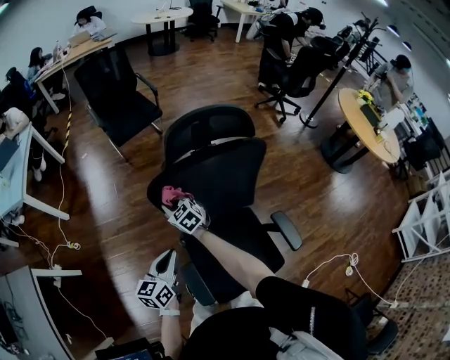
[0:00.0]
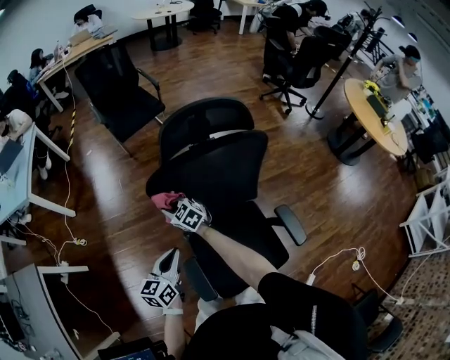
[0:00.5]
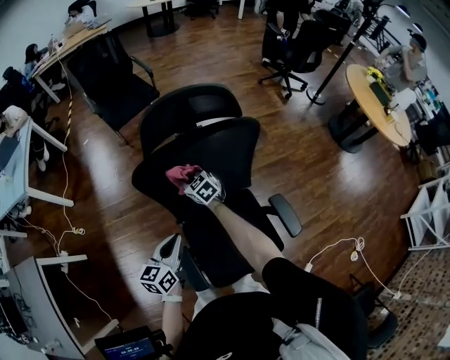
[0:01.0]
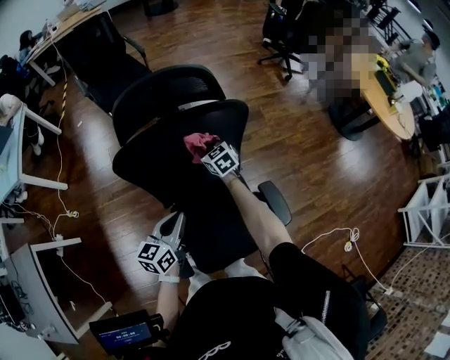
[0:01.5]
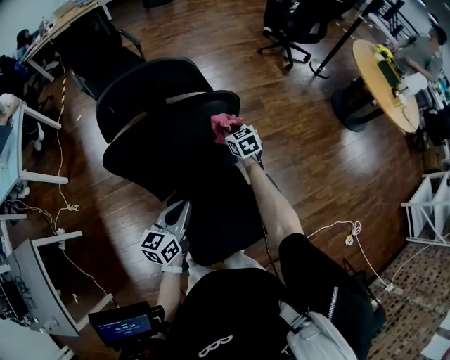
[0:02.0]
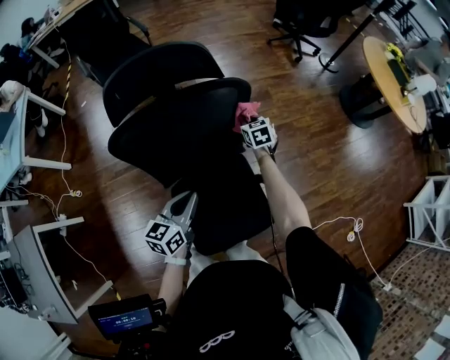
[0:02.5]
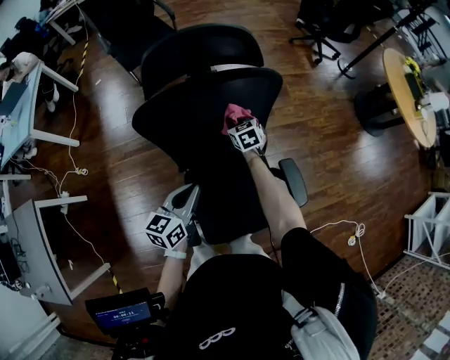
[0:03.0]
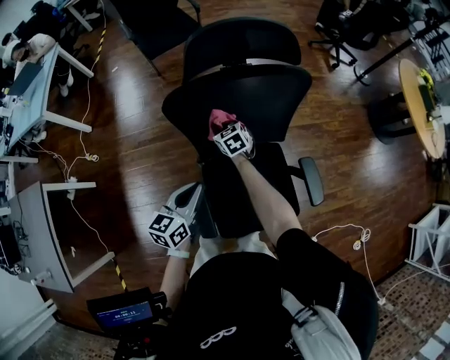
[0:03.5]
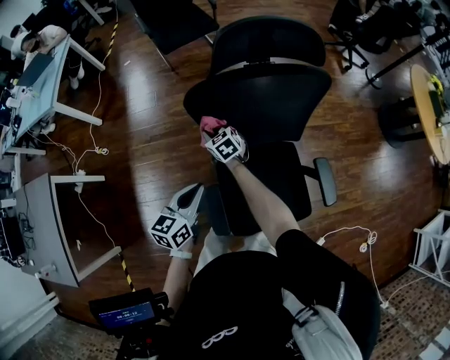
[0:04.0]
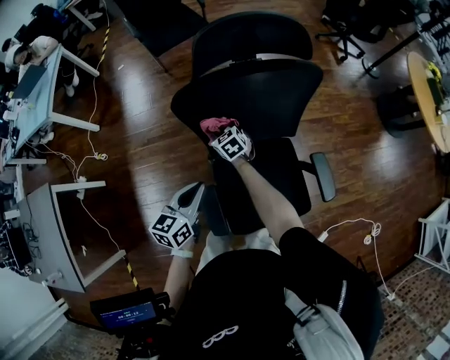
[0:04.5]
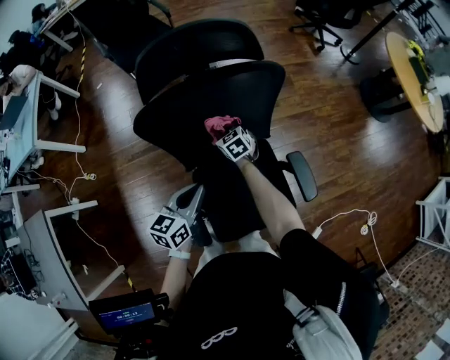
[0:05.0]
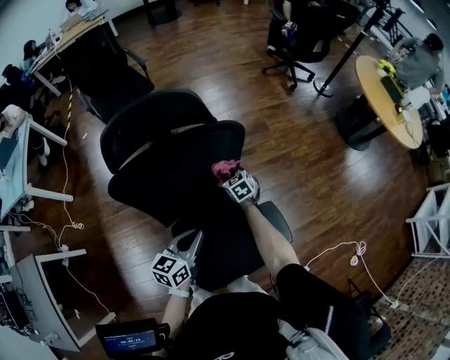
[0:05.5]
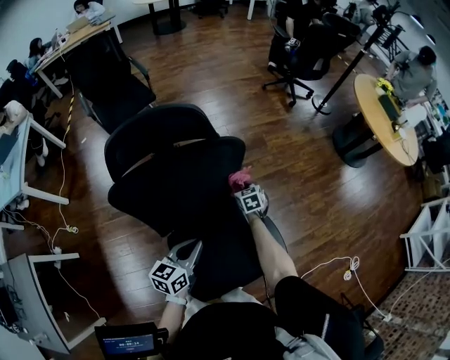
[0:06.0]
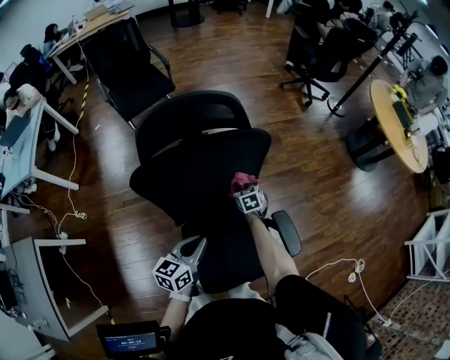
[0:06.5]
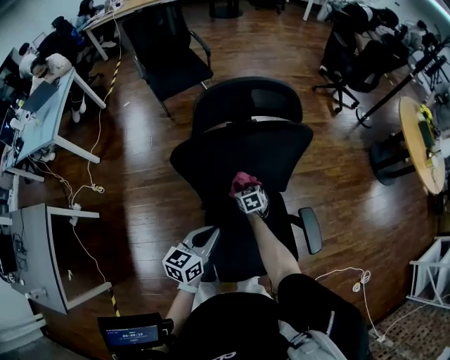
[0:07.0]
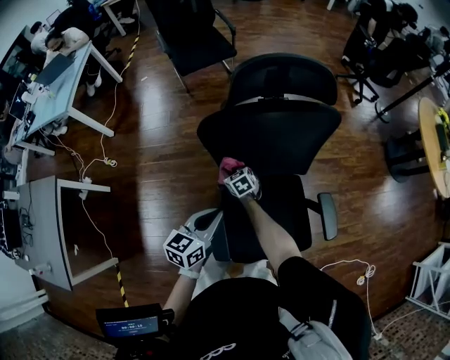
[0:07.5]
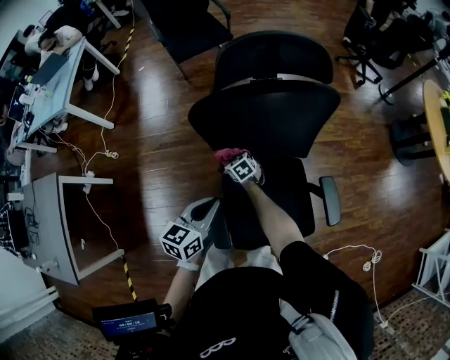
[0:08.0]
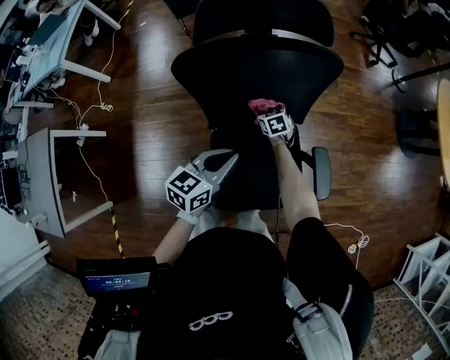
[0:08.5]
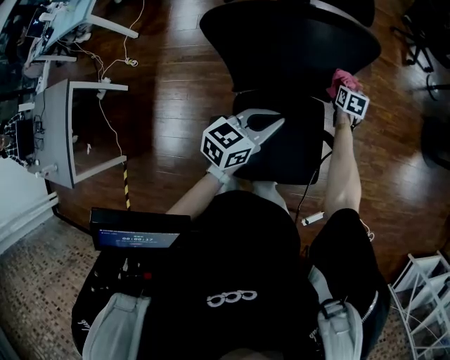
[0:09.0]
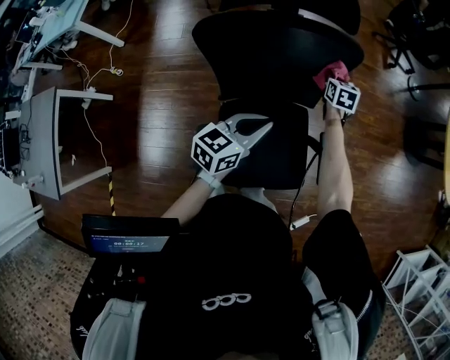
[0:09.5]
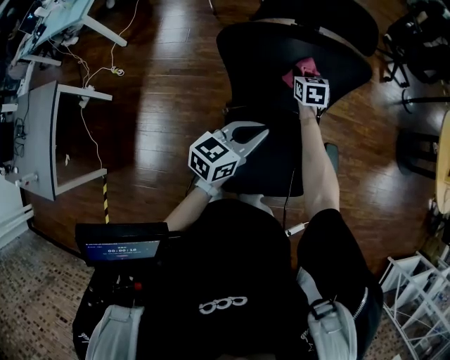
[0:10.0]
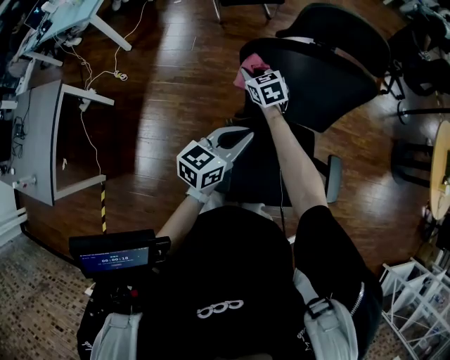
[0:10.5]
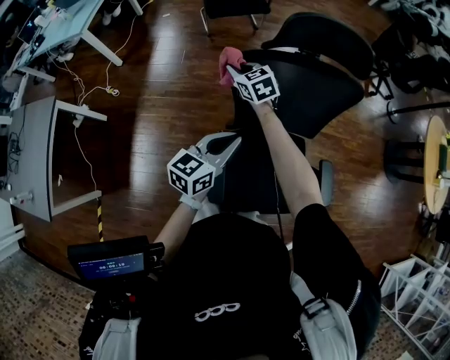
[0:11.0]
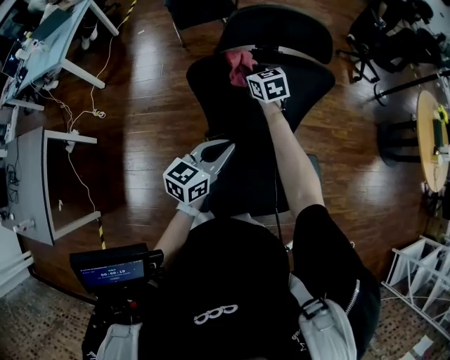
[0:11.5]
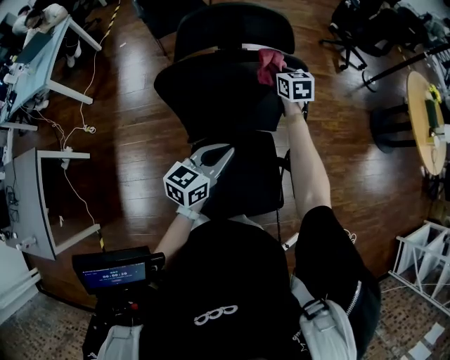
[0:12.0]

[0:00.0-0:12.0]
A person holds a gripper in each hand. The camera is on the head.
0:00.0 to 0:02.0: The left gripper shifts roughly 20 cm to the right, while the right gripper is displaced to the right by roughly 40 cm, and changes its angle by about 20 degrees.
0:02.0 to 0:04.0: The right gripper moves to the left, approximately 40 cm, and turns by about 20 degrees; the left gripper shifts roughly 20 cm to the left and backward.
0:04.0 to 0:06.0: The right gripper shifts by some 40 cm, and turns by approximately 30 degrees. The left gripper changes place by approximately 25 cm.
0:06.0 to 0:08.0: The left gripper ends up about 20 cm from where it was. The right gripper changes place by about 40 cm, and swivels roughly 30 degrees.
0:08.0 to 0:10.0: The right gripper turns by about 20 degrees.
0:10.0 to 0:12.0: The left gripper goes to the left and returns, approximately 10 cm each way; the right gripper shifts some 10 cm upward and forward, and moves roughly 25 cm to the left and comes back.

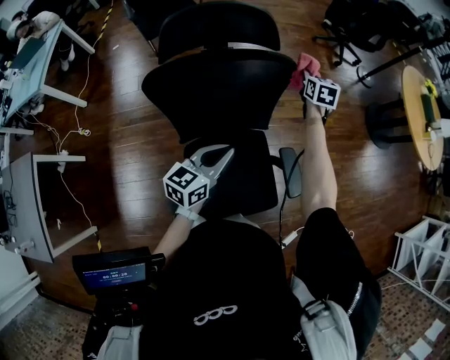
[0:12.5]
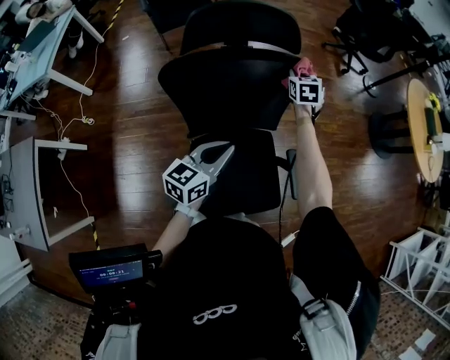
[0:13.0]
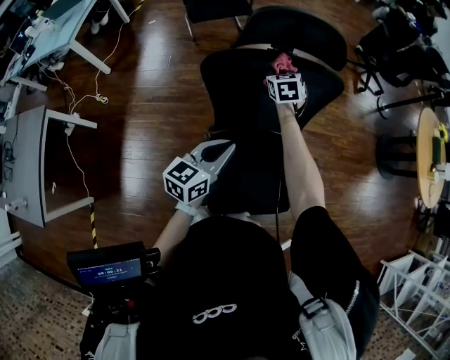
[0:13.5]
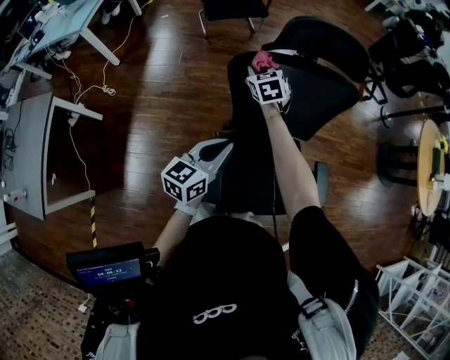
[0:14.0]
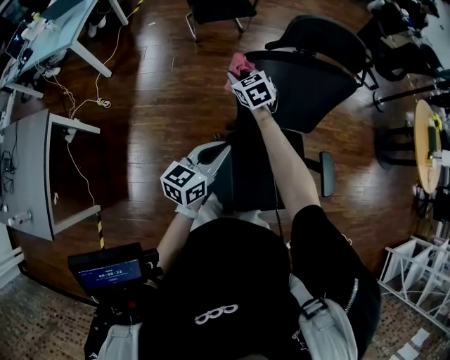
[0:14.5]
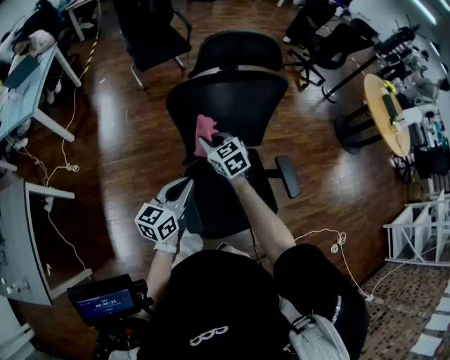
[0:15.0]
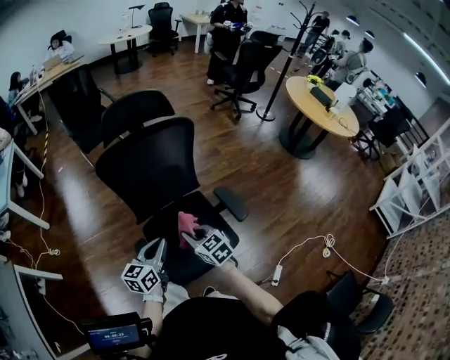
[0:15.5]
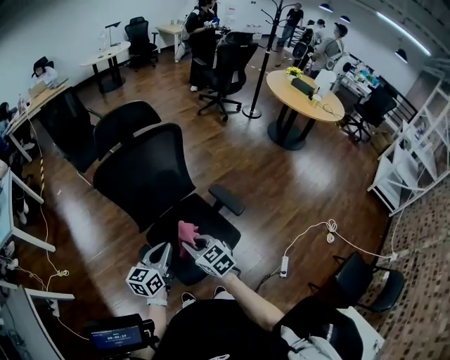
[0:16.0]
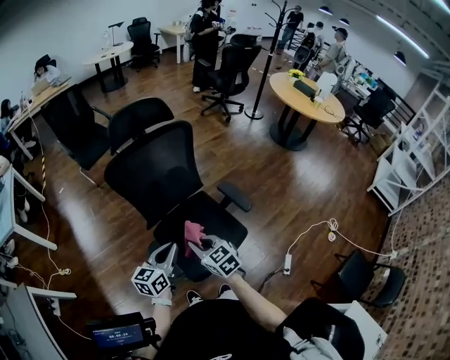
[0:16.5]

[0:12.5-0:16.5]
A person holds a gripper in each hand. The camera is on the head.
0:12.5 to 0:14.5: The right gripper moves approximately 60 cm, and turns by about 50 degrees. The left gripper shifts by some 25 cm.
0:14.5 to 0:16.5: The right gripper moves backward and to the right, roughly 40 cm, and swivels some 30 degrees. Meanwhile the left gripper goes approximately 20 cm to the right and backward.

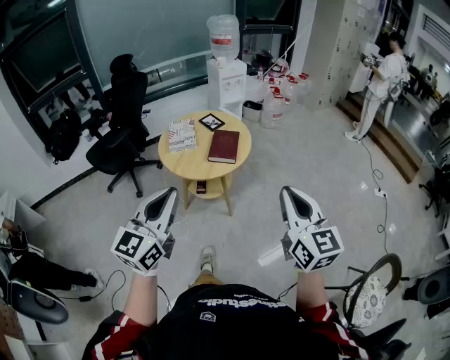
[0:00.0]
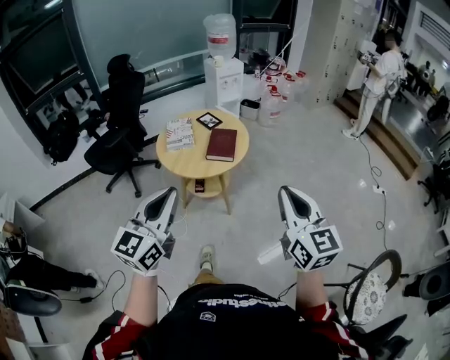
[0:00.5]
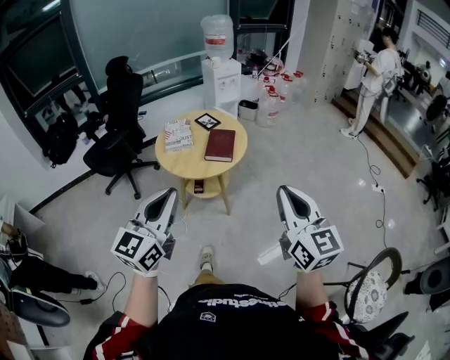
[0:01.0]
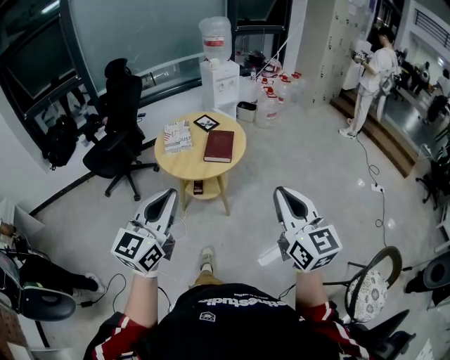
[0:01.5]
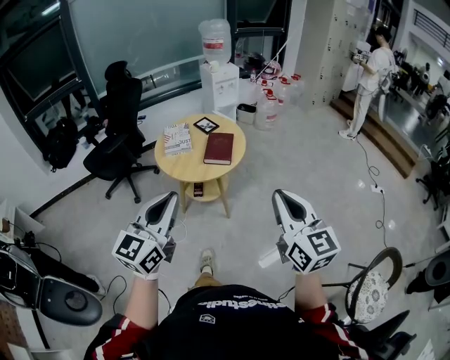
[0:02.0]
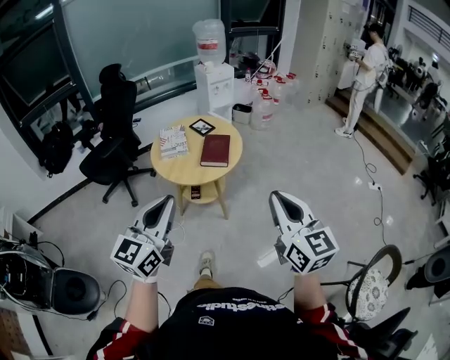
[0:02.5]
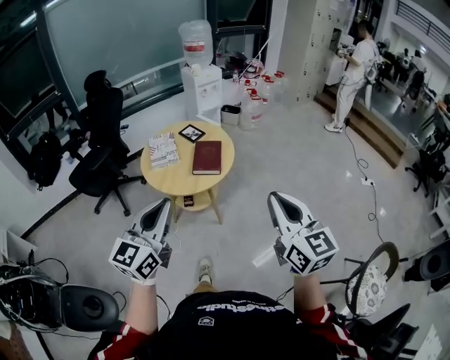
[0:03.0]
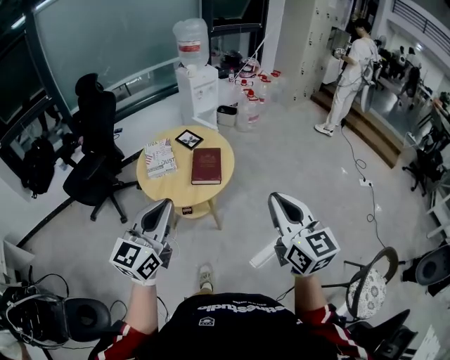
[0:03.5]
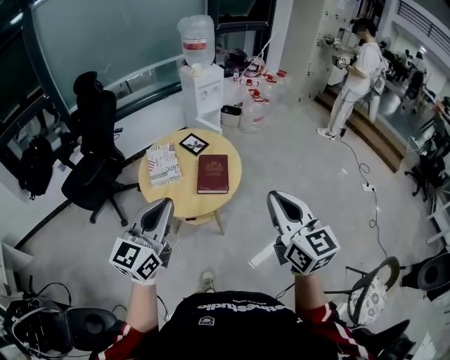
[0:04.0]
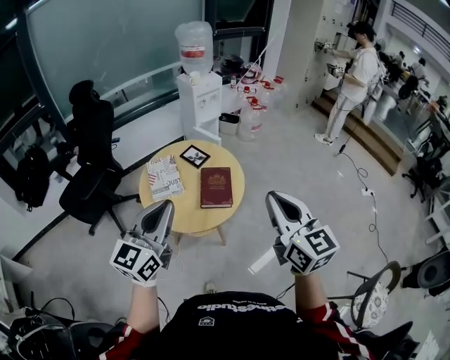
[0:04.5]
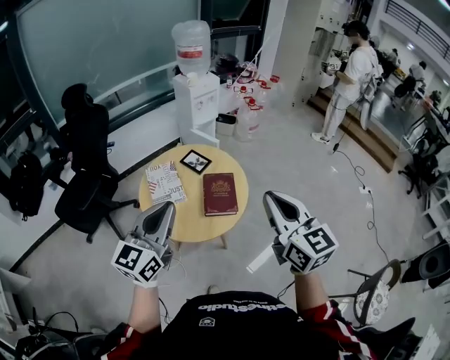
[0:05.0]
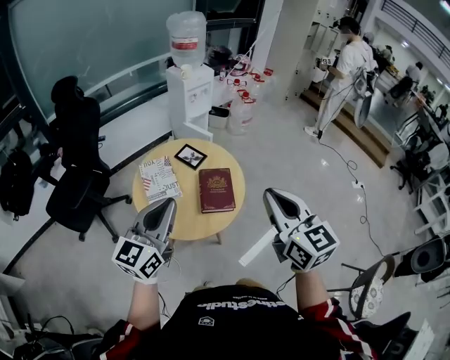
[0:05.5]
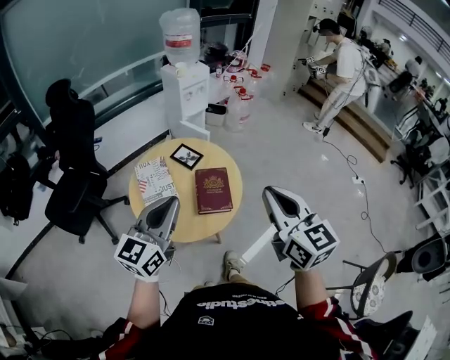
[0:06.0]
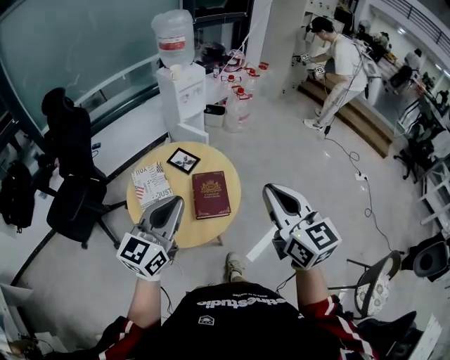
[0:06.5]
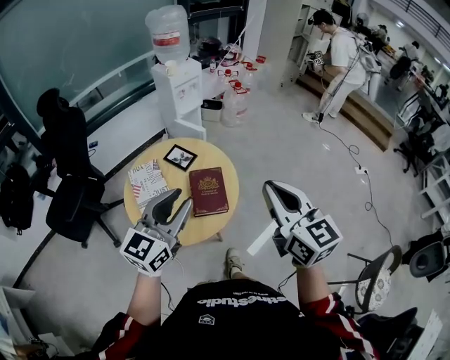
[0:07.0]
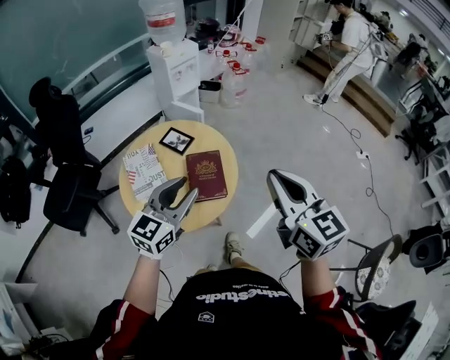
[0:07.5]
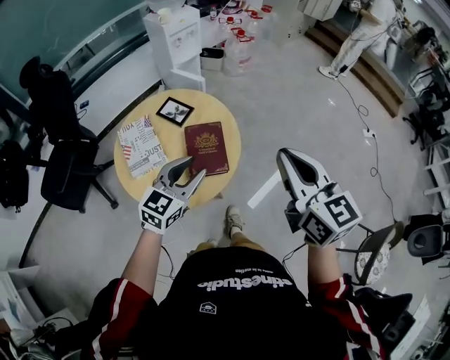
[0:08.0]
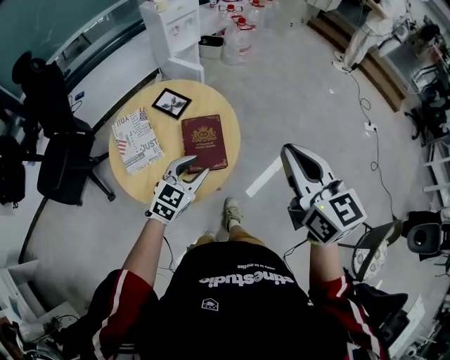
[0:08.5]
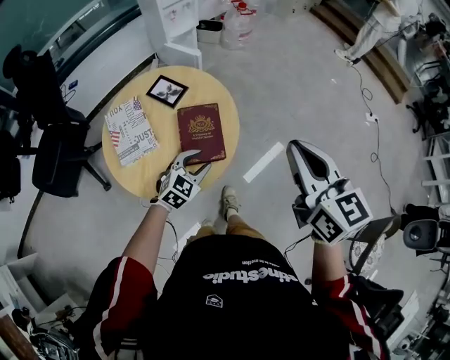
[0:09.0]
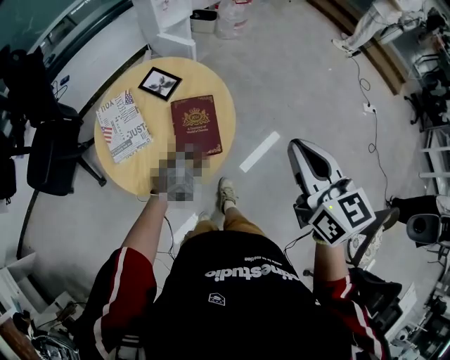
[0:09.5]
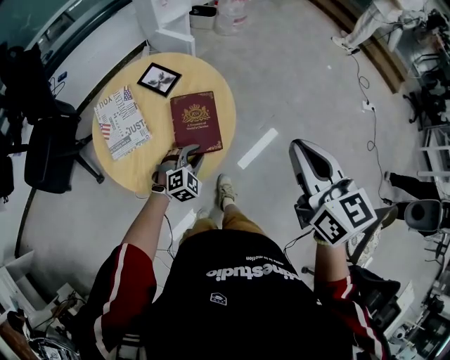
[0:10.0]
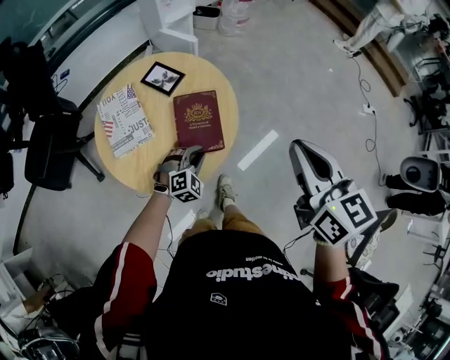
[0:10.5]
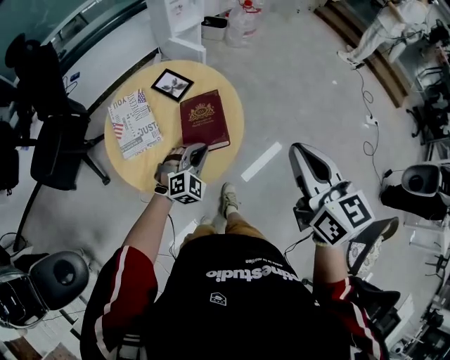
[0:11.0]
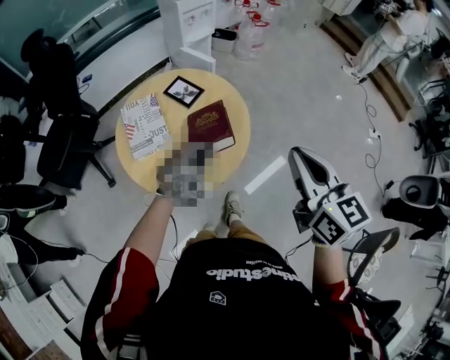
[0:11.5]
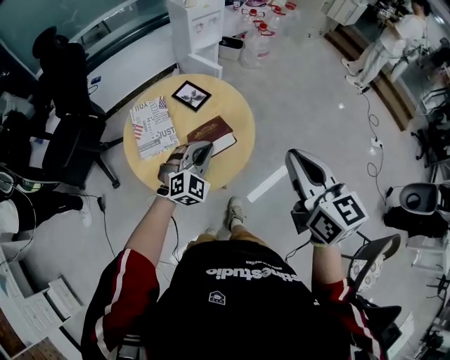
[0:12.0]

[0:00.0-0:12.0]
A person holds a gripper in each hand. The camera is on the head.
0:00.0 to 0:02.0: The grippers move only a little.
0:02.0 to 0:04.0: The grippers both shift forward by about 20 cm.
0:04.0 to 0:06.0: The left gripper goes roughly 15 cm forward. The right gripper travels forward and to the left by about 15 cm.
0:06.0 to 0:08.0: The left gripper goes approximately 20 cm downward, to the right and forward, swivels roughly 20 degrees, and opens up. Meanwhile the right gripper goes approximately 10 cm forward, to the right and downward.
0:08.0 to 0:10.0: The right gripper travels downward by about 5 cm. Meanwhile the left gripper shifts some 25 cm downward, and swivels roughly 50 degrees.
0:10.0 to 0:12.0: The right gripper moves to the left, about 5 cm, while the left gripper travels upward by about 15 cm, rotates about 20 degrees, and closes.
